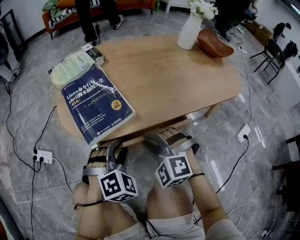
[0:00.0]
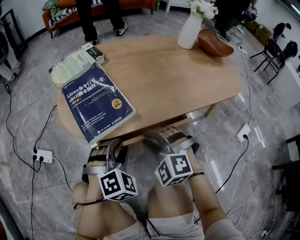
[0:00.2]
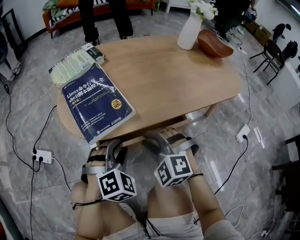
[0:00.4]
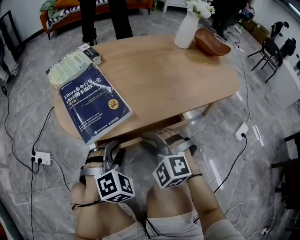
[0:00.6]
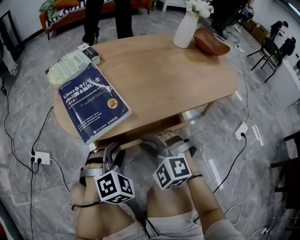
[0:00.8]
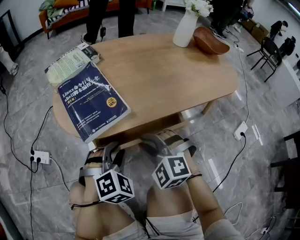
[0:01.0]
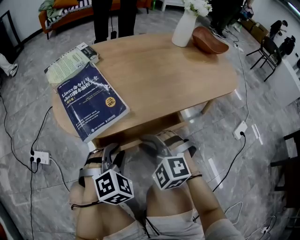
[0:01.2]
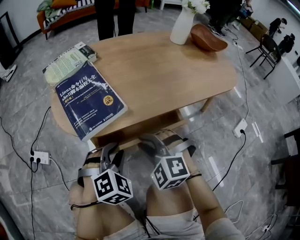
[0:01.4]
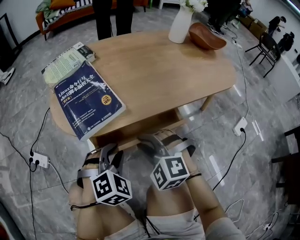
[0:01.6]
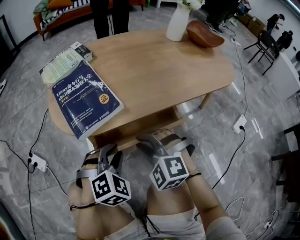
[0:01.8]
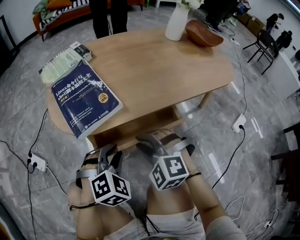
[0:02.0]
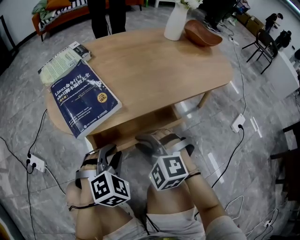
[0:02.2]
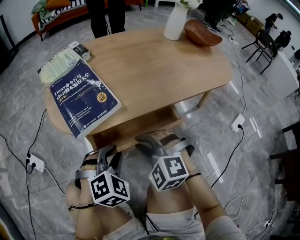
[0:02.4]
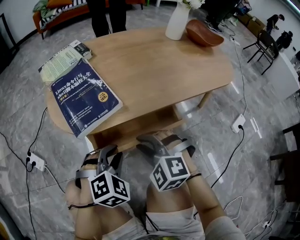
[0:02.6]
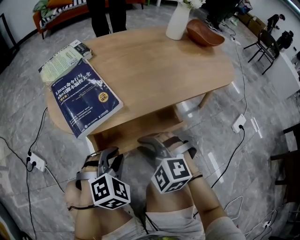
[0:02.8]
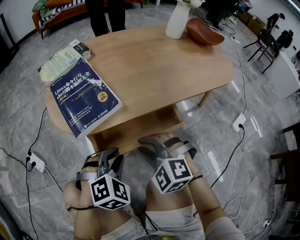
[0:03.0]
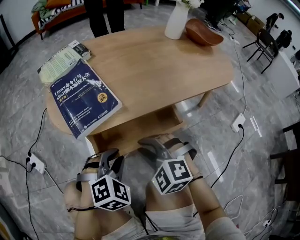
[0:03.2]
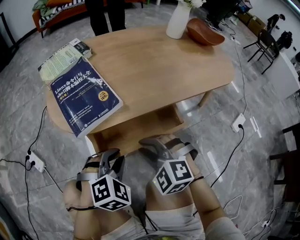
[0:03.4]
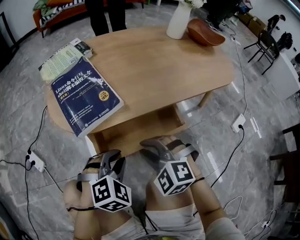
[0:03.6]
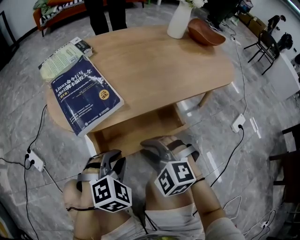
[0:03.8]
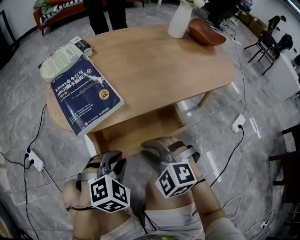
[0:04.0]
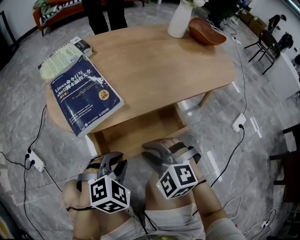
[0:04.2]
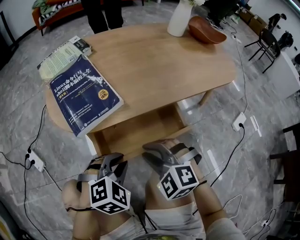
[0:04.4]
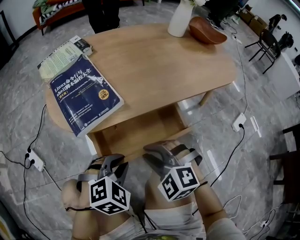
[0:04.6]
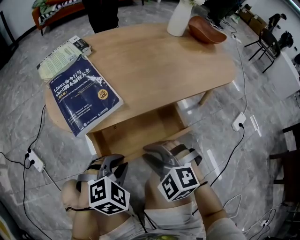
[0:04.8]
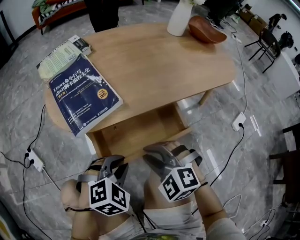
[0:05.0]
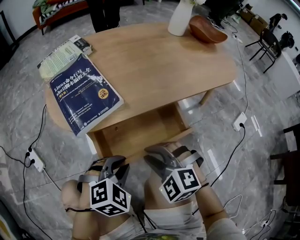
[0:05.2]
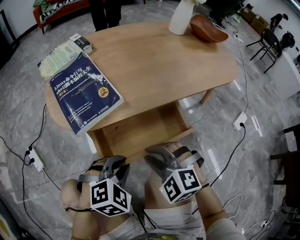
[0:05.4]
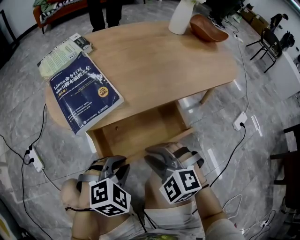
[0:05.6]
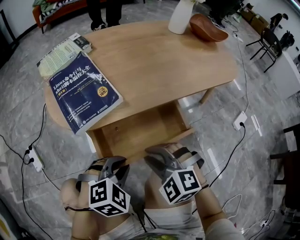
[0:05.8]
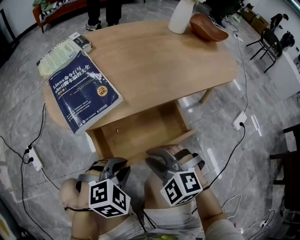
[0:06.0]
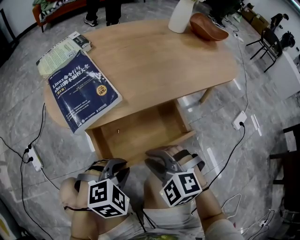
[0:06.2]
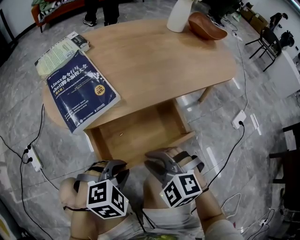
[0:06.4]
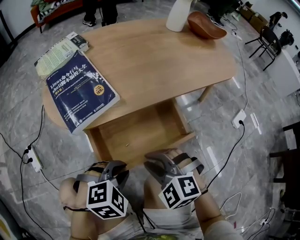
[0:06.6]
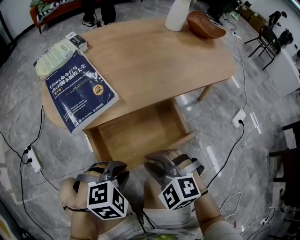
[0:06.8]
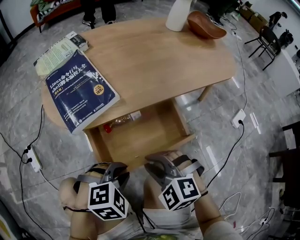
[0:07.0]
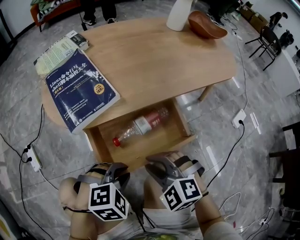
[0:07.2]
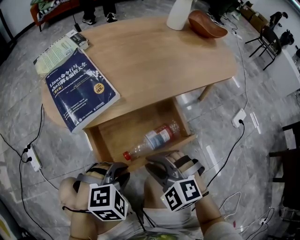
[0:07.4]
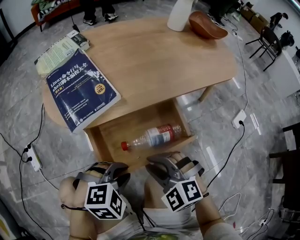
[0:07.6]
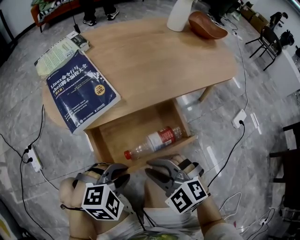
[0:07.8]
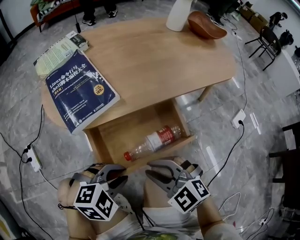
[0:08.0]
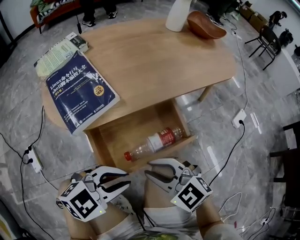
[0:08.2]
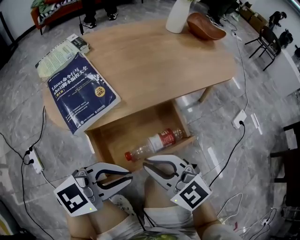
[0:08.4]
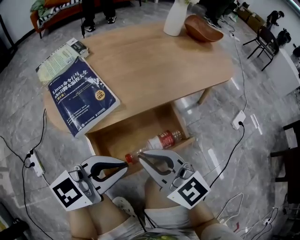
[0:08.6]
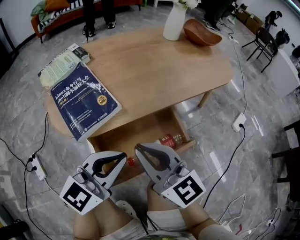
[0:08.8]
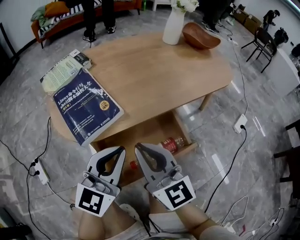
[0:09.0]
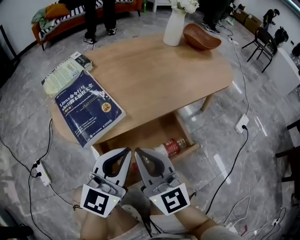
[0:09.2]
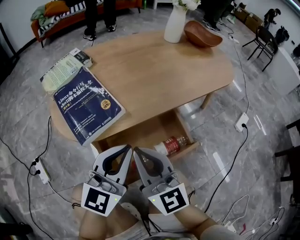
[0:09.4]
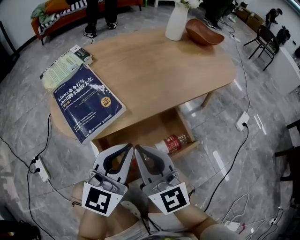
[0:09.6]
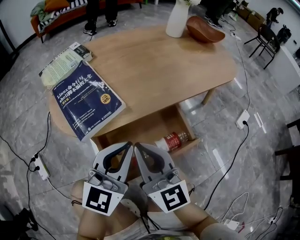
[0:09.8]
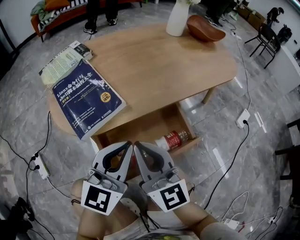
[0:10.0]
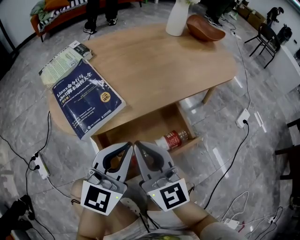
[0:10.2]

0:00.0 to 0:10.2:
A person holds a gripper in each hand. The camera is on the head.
0:00.0 to 0:03.0: The grippers stay close to where they were, moving slightly.
0:03.0 to 0:05.8: The grippers make only small movements.
0:05.8 to 0:07.2: The grippers move only a little.
0:07.2 to 0:08.8: The grippers both shift upward by some 15 cm. The right gripper tips its fingers upward by some 50 degrees. The left gripper angles its fingers upward, by about 50 degrees.
0:08.8 to 0:10.2: The grippers move only a little.

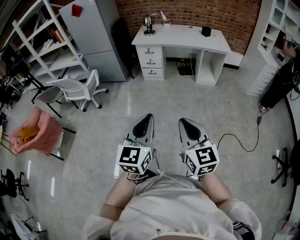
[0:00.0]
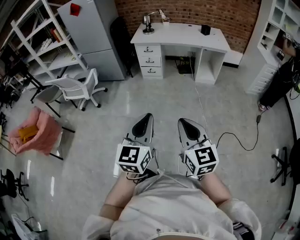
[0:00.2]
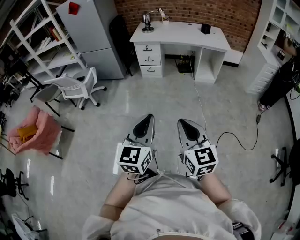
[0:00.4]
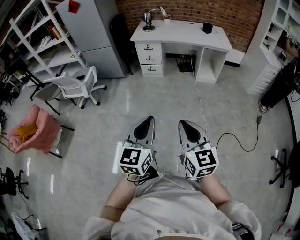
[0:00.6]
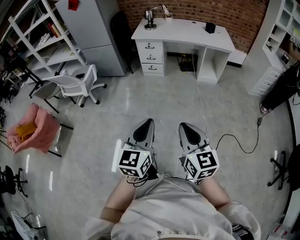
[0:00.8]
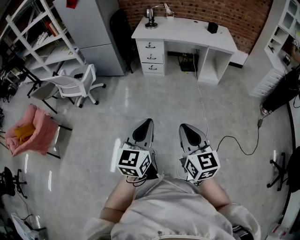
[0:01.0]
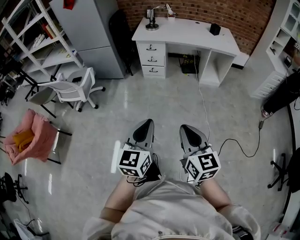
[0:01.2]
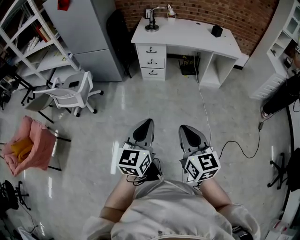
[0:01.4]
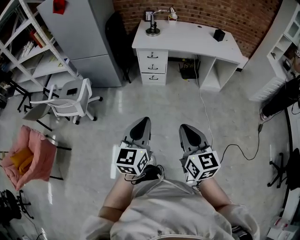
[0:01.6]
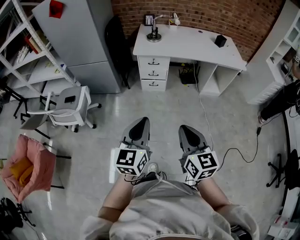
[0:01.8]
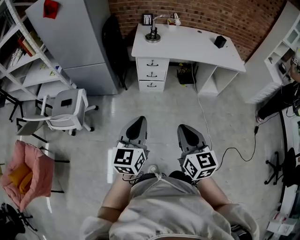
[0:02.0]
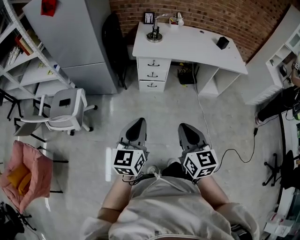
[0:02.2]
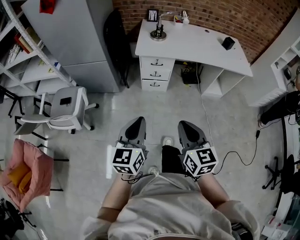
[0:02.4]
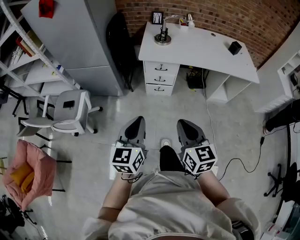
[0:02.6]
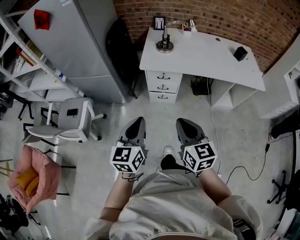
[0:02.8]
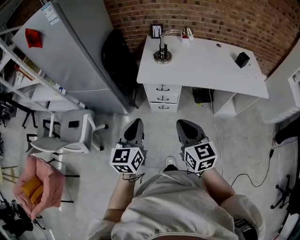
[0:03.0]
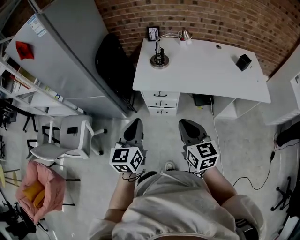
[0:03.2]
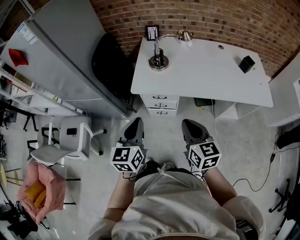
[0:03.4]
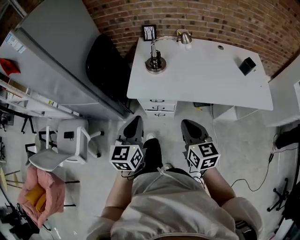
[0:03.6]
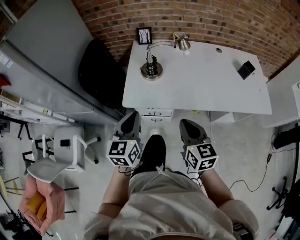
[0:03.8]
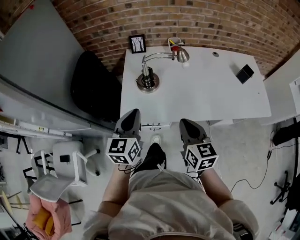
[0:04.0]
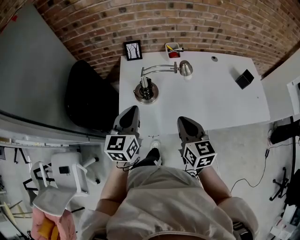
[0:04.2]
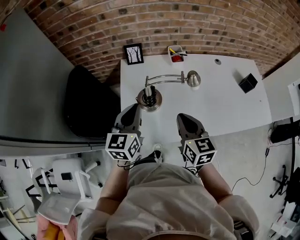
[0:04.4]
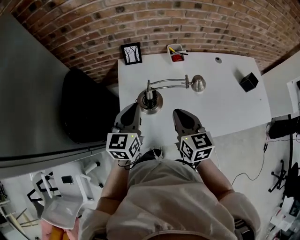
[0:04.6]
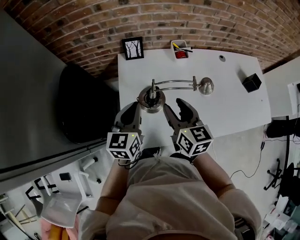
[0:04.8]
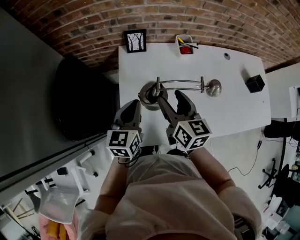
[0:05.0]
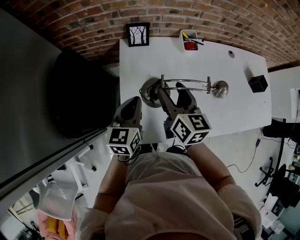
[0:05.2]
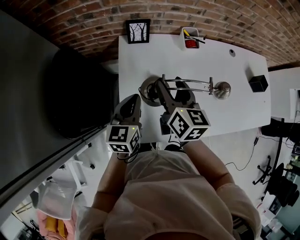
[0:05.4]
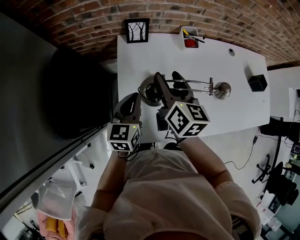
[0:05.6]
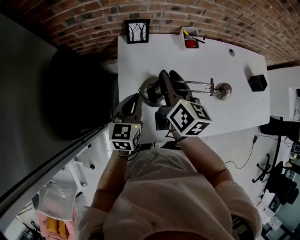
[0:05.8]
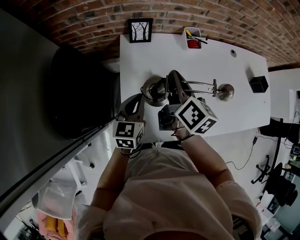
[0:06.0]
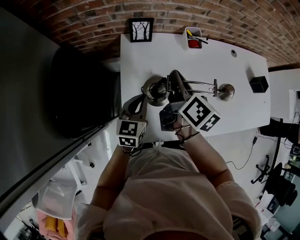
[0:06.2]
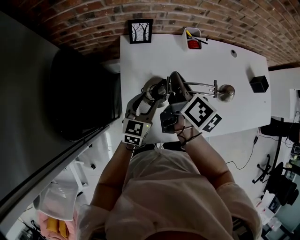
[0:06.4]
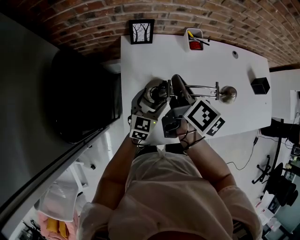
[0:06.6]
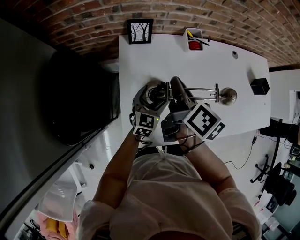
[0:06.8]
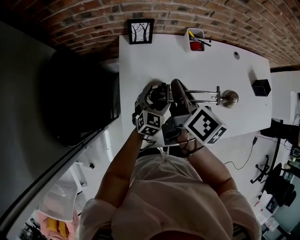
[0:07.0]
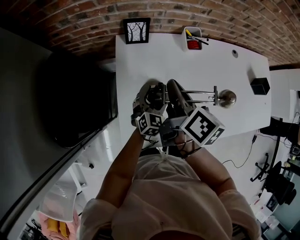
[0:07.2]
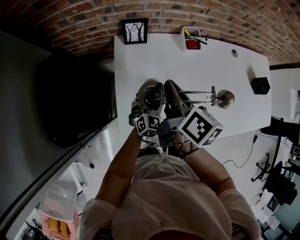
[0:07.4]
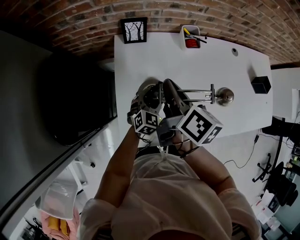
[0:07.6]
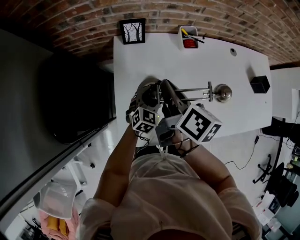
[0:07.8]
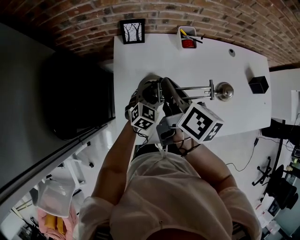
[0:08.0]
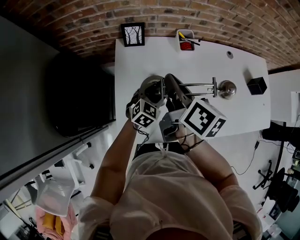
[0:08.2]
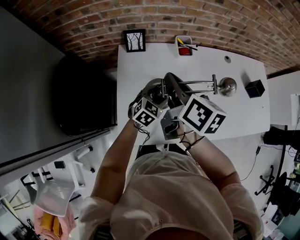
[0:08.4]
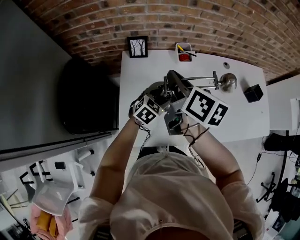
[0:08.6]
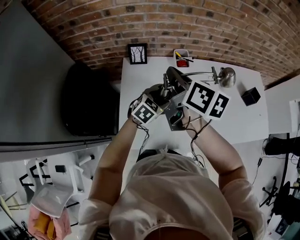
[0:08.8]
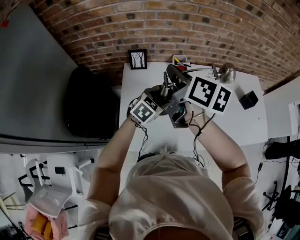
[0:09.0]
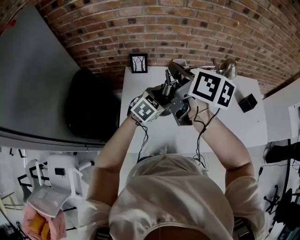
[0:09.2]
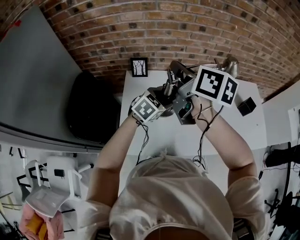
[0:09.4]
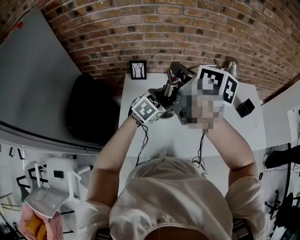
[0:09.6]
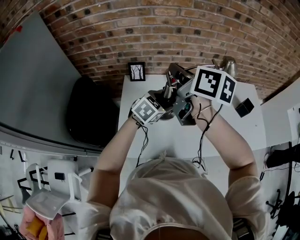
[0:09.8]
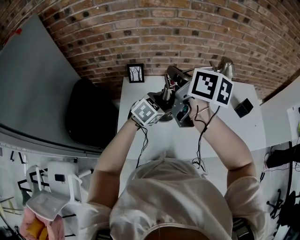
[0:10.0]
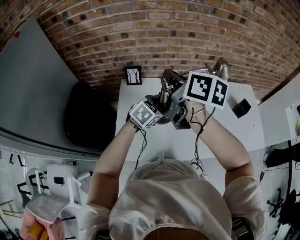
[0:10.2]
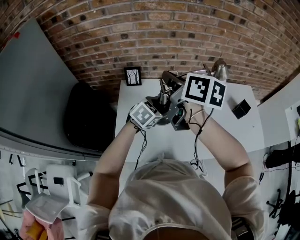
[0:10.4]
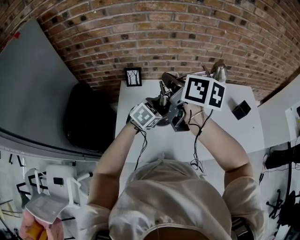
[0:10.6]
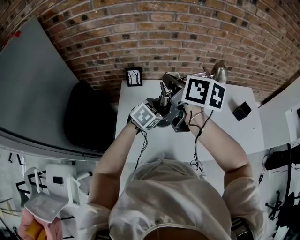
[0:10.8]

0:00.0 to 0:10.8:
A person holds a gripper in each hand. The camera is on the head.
0:00.0 to 0:01.6: The two grippers go some 35 cm forward and to the left.
0:01.6 to 0:03.0: The two grippers travel together, forward, approximately 40 cm.
0:03.0 to 0:04.6: Both grippers are carried forward, about 50 cm.
0:04.6 to 0:06.2: The left gripper heads downward, covering about 15 cm, while the right gripper moves forward and to the left, approximately 15 cm, turns by some 40 degrees, and opens and closes again.
0:06.2 to 0:07.8: The left gripper shifts about 15 cm downward and to the right, swivels some 30 degrees, and opens its fingers.
0:07.8 to 0:09.2: The grippers both shift upward by approximately 20 cm.
0:09.2 to 0:10.8: There are only small adjustments of the grippers.

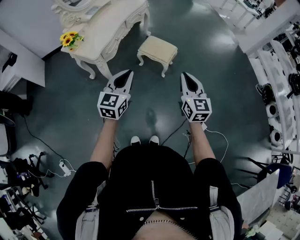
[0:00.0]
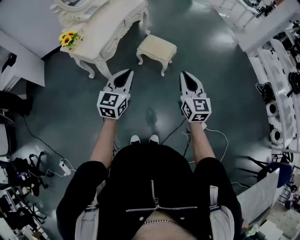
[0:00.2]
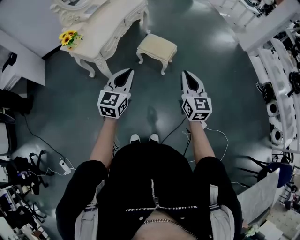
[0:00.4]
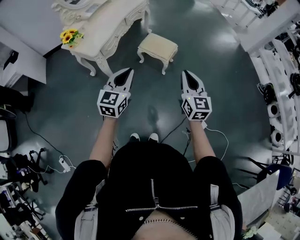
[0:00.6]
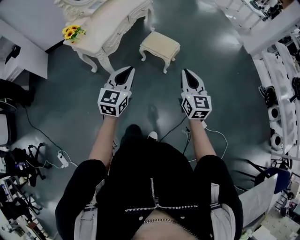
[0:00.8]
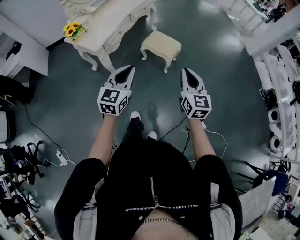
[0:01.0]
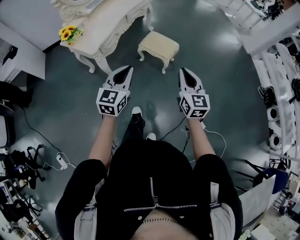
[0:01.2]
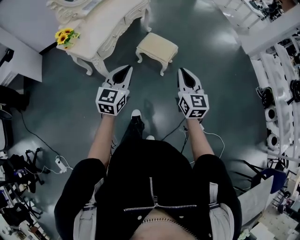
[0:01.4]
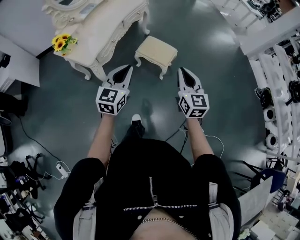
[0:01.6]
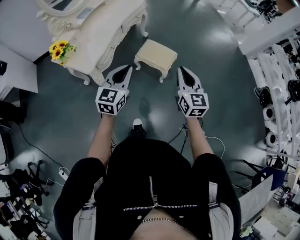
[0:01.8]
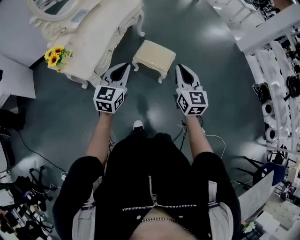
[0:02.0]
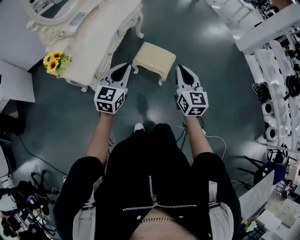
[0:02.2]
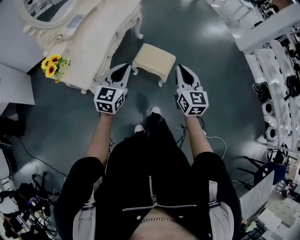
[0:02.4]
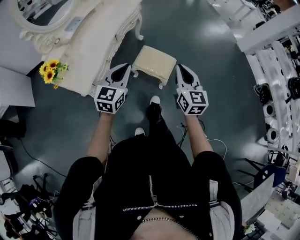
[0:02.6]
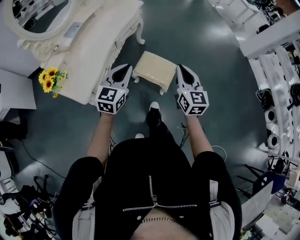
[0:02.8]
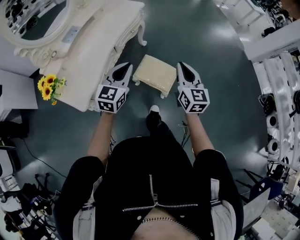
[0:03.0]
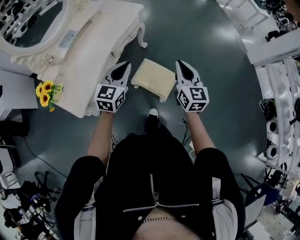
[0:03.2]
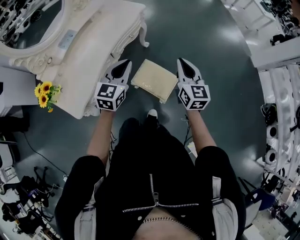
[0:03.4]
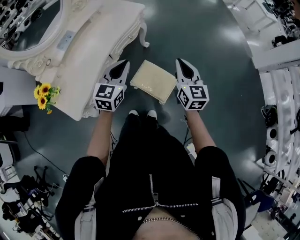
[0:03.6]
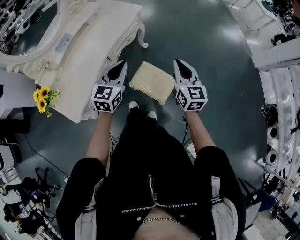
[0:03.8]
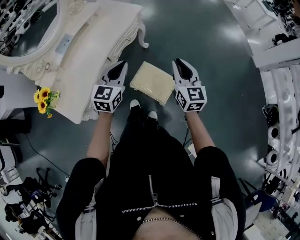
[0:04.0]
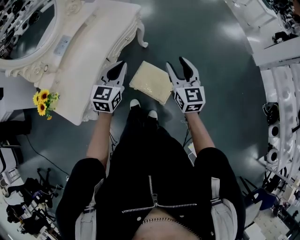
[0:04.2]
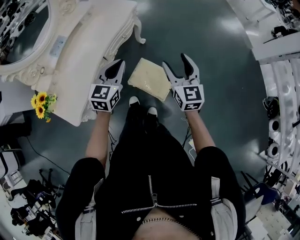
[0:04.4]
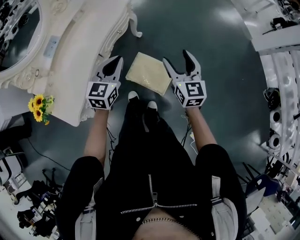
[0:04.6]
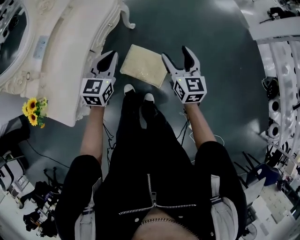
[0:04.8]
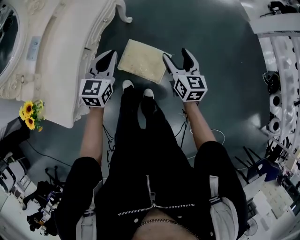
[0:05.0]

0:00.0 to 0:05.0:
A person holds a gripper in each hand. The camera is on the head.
0:00.0 to 0:01.6: The two grippers go roughly 10 cm forward.
0:01.6 to 0:03.4: The two grippers travel together, forward, roughly 40 cm.
0:03.4 to 0:05.0: The left gripper shifts about 10 cm downward and forward. Meanwhile the right gripper goes roughly 15 cm downward, and opens its fingers.
